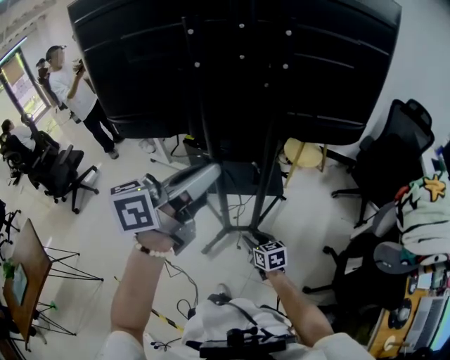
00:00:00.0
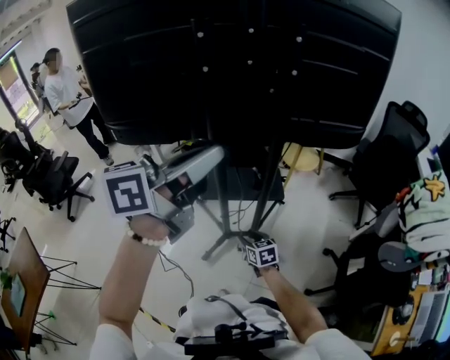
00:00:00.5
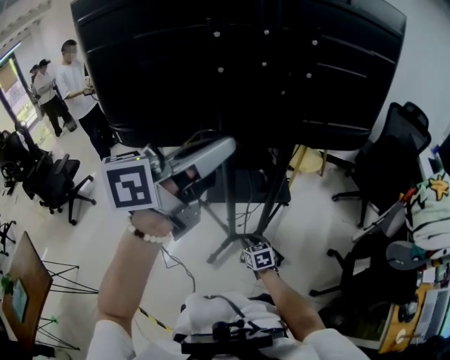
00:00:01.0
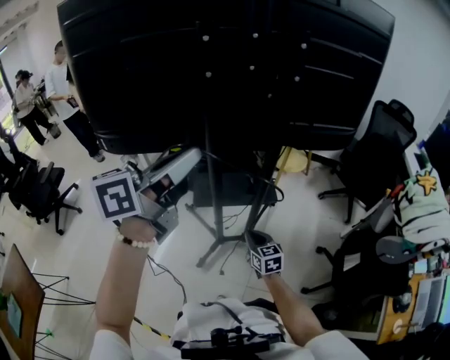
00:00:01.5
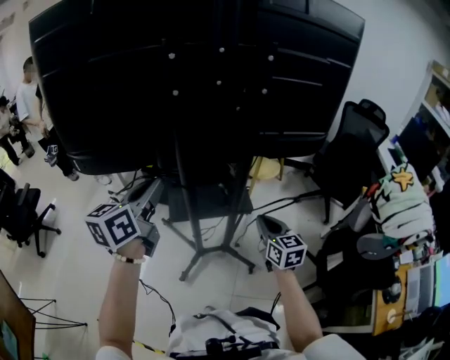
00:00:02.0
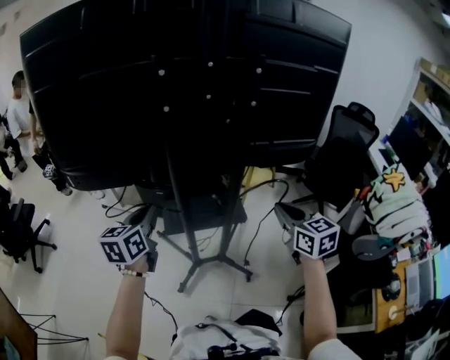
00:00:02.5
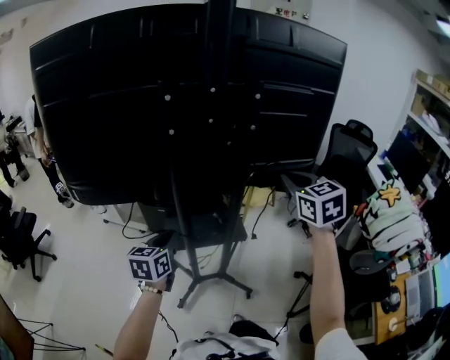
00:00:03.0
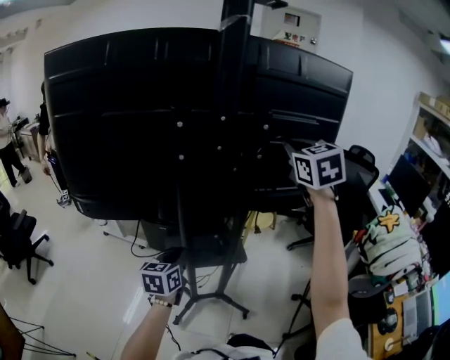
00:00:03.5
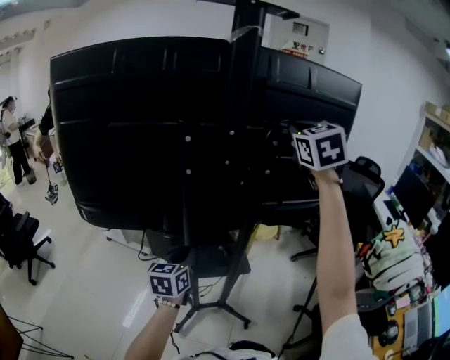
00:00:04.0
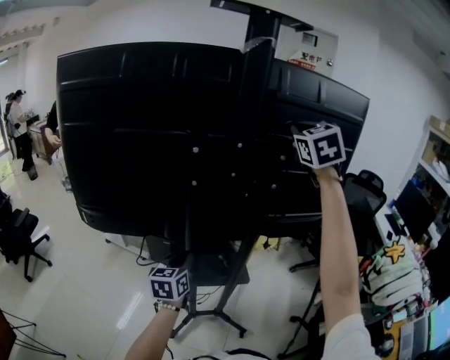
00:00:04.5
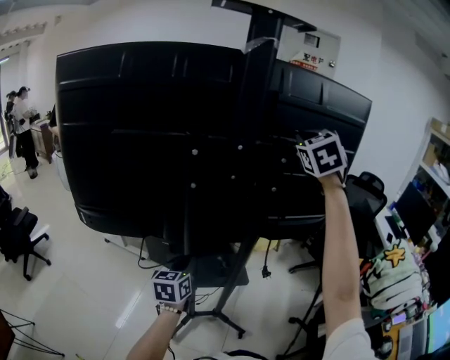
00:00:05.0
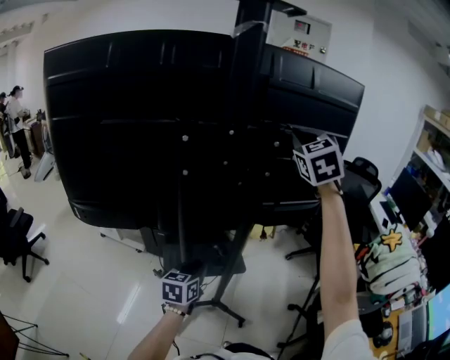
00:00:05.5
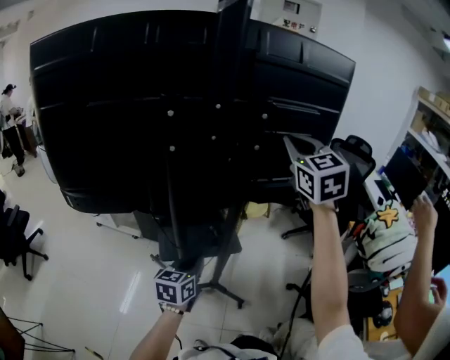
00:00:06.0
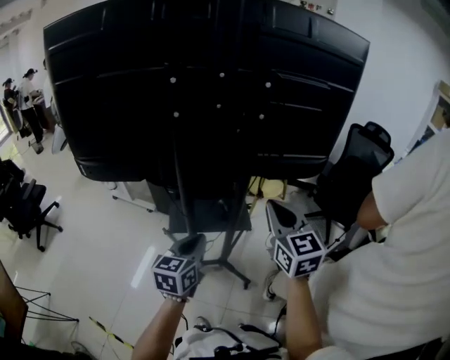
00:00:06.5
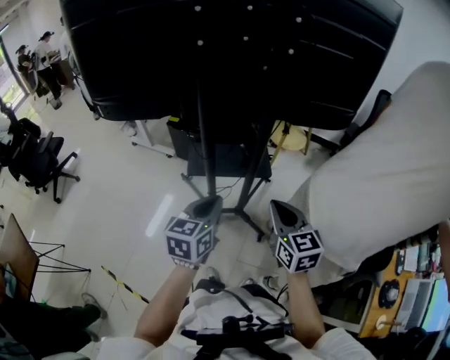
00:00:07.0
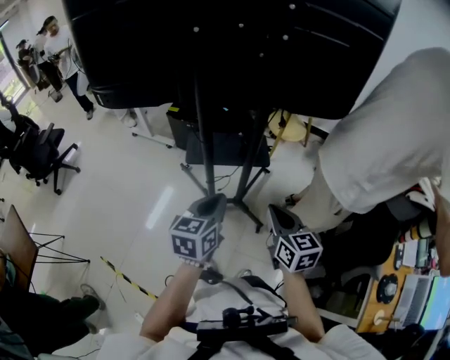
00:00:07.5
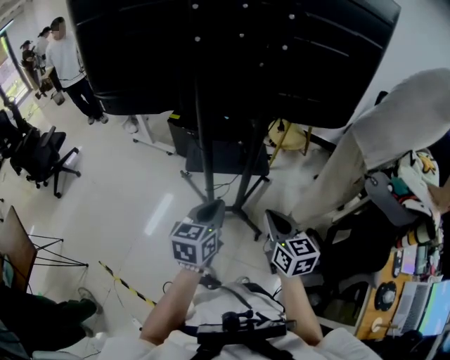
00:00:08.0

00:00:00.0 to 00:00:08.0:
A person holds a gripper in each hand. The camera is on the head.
00:00:00.0 to 00:00:02.0: The left gripper goes about 20 cm to the left, forward and downward, and rotates approximately 20 degrees. The right gripper moves upward and forward, some 20 cm, changes its angle by some 30 degrees, and closes its fingers.
00:00:02.0 to 00:00:04.0: The right gripper shifts some 50 cm upward, and swivels some 40 degrees. Meanwhile the left gripper moves downward, forward and to the right, some 10 cm.
00:00:04.0 to 00:00:06.0: The left gripper heads to the right and downward, covering roughly 10 cm; the right gripper is displaced downward by some 10 cm.
00:00:06.0 to 00:00:08.0: The left gripper goes about 15 cm backward, while the right gripper moves downward and backward, some 50 cm, and swivels roughly 40 degrees.

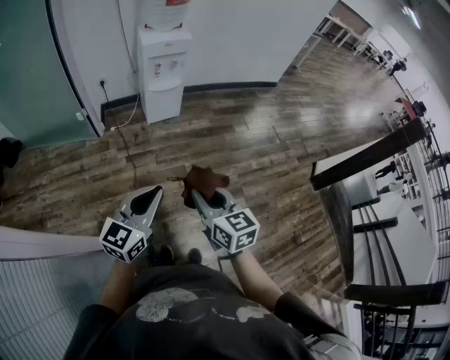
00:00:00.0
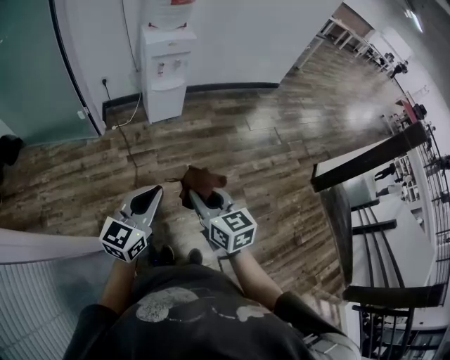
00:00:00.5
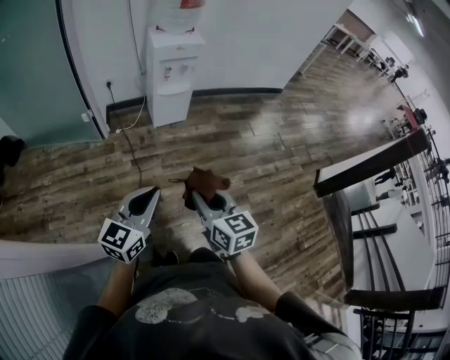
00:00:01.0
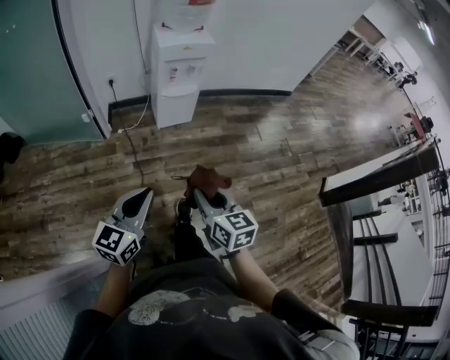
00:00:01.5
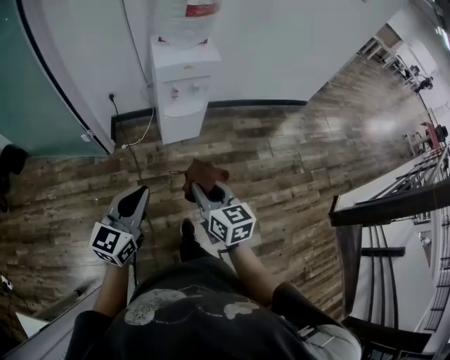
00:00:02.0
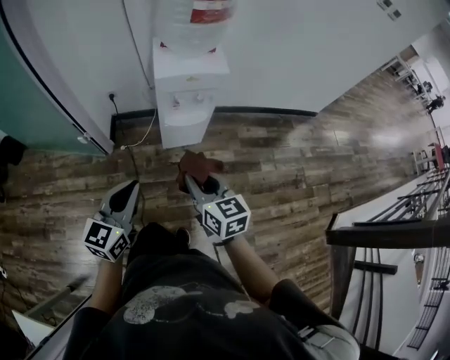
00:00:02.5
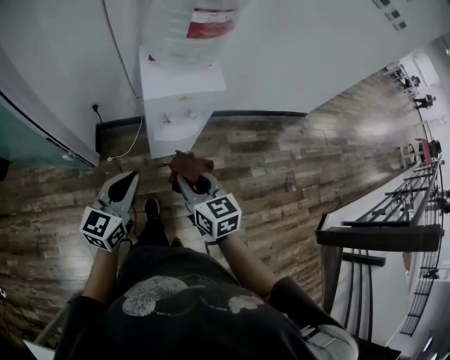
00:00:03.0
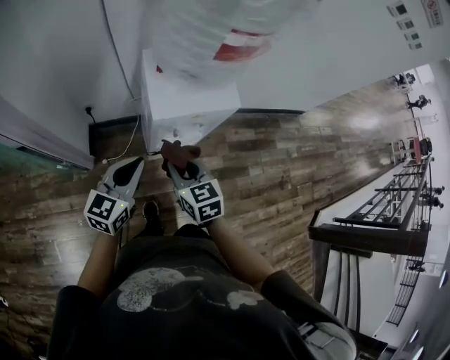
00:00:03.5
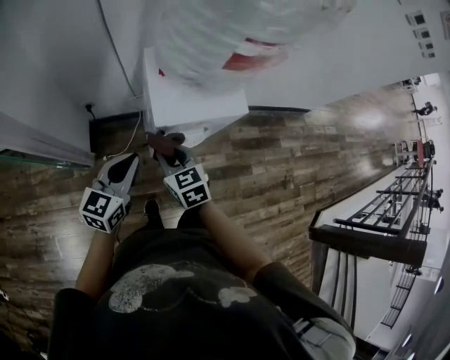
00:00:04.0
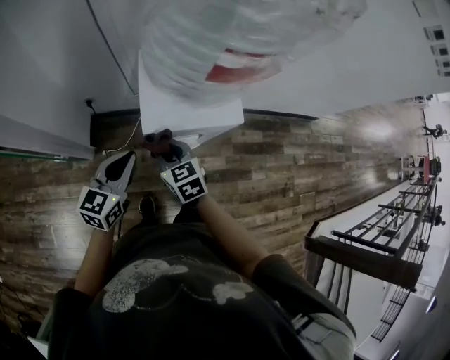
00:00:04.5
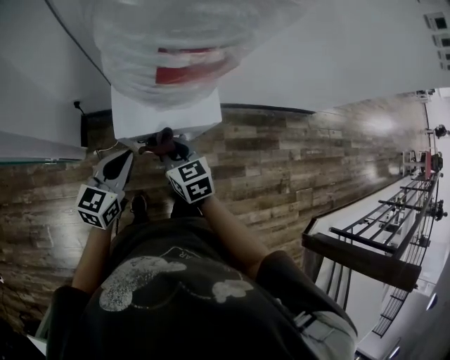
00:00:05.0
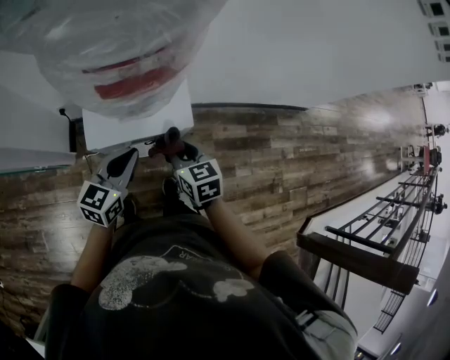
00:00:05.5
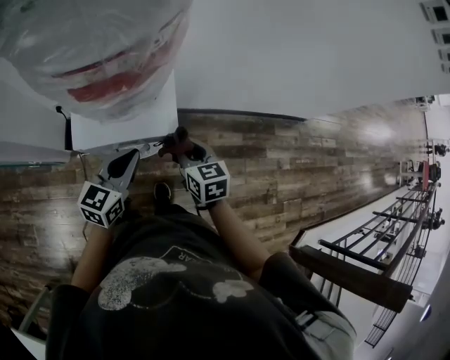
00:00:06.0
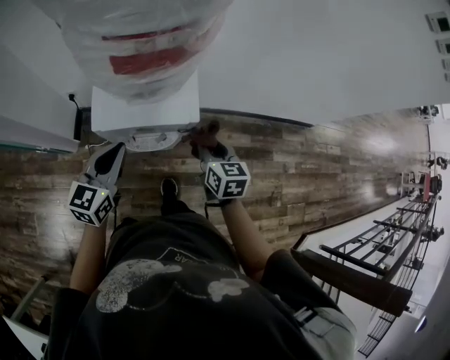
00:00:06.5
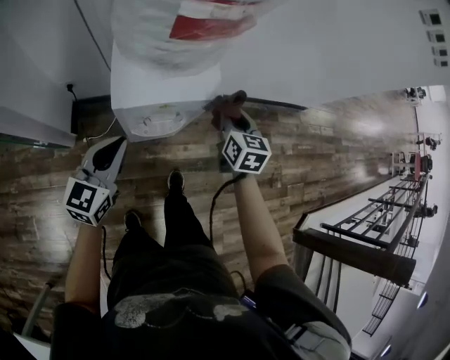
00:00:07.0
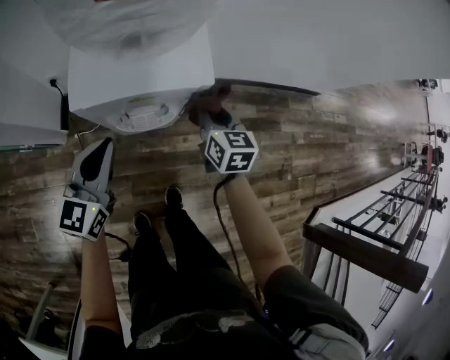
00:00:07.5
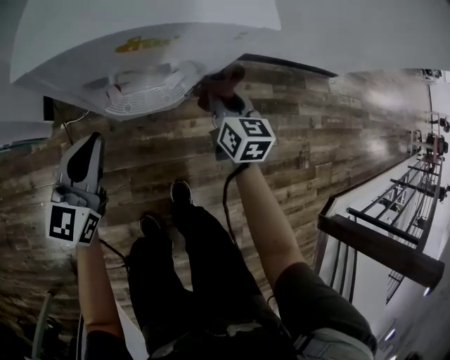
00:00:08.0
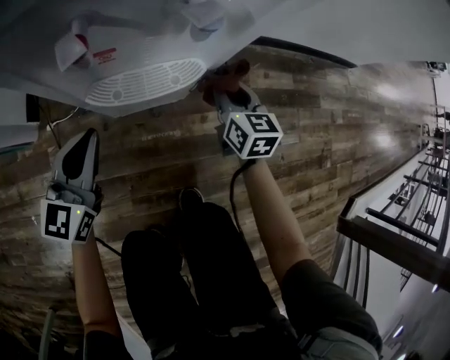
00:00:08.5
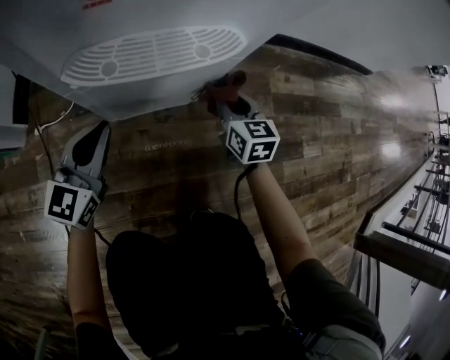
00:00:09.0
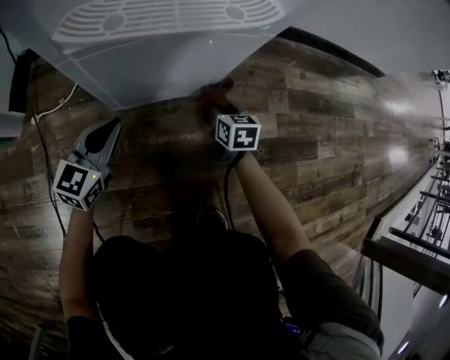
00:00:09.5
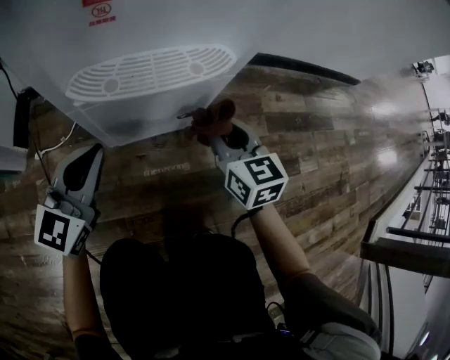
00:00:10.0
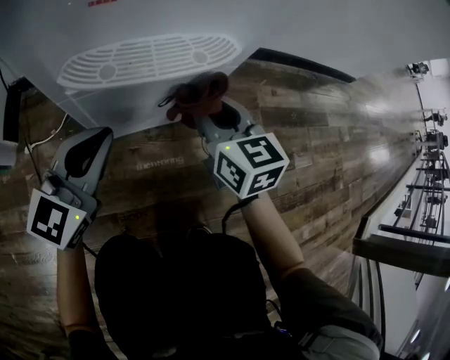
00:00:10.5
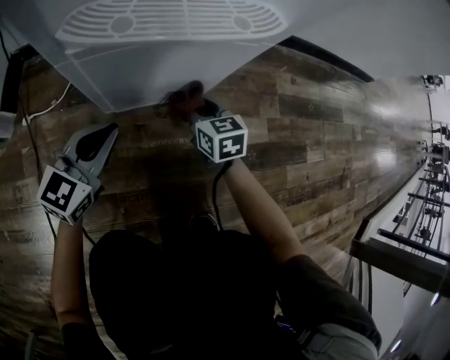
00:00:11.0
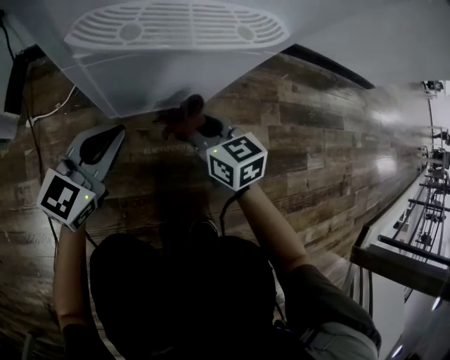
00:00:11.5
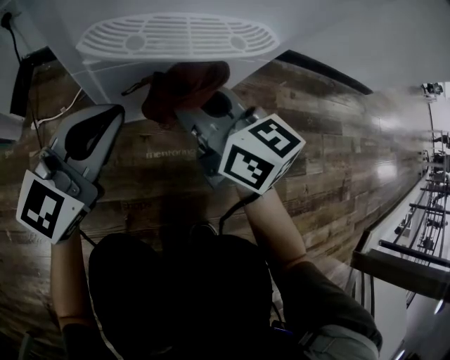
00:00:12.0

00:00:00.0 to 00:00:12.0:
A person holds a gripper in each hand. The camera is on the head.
00:00:00.0 to 00:00:02.0: Both grippers move forward, some 30 cm.
00:00:02.0 to 00:00:04.0: The pair of grippers is taken forward, approximately 40 cm. The right gripper changes its angle by some 20 degrees.
00:00:04.0 to 00:00:06.0: The two grippers go some 25 cm to the right.
00:00:06.0 to 00:00:08.0: The left gripper moves downward, to the left and backward, approximately 20 cm. The right gripper travels downward by roughly 20 cm.
00:00:08.0 to 00:00:10.0: Both grippers travel together downward, roughly 25 cm.
00:00:10.0 to 00:00:12.0: The right gripper goes approximately 10 cm to the left, travels downward and back again, approximately 15 cm each way, and swivels some 30 degrees, while the left gripper goes downward and returns, approximately 10 cm each way.

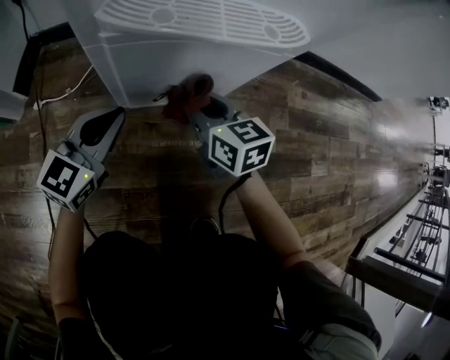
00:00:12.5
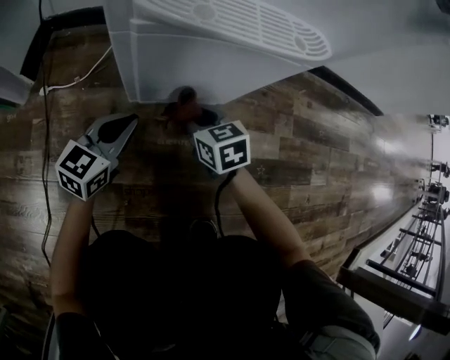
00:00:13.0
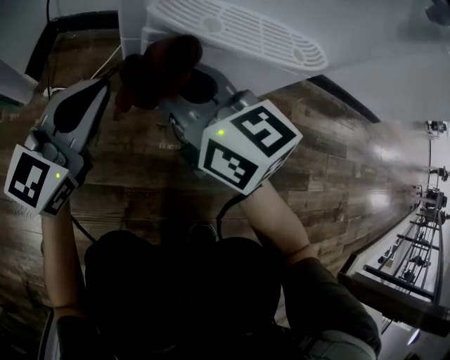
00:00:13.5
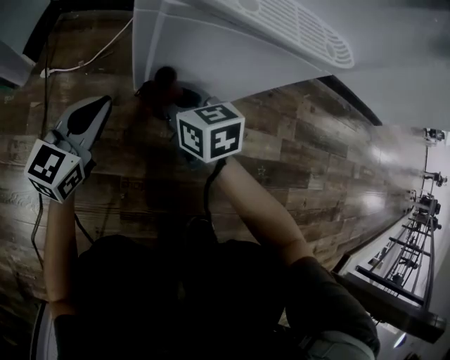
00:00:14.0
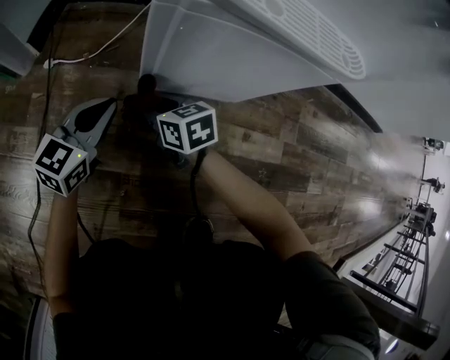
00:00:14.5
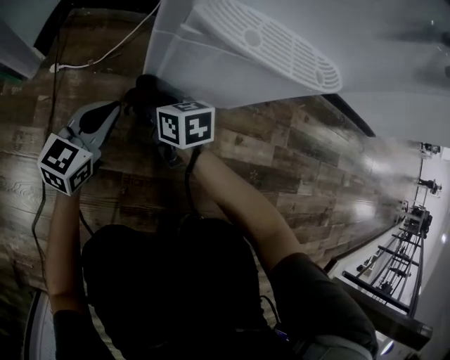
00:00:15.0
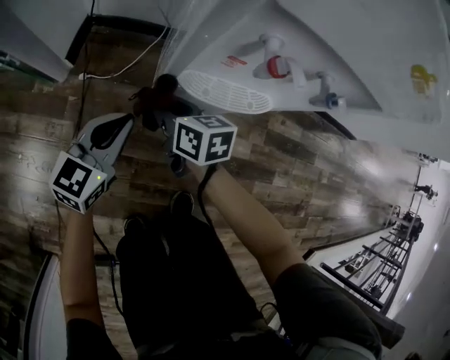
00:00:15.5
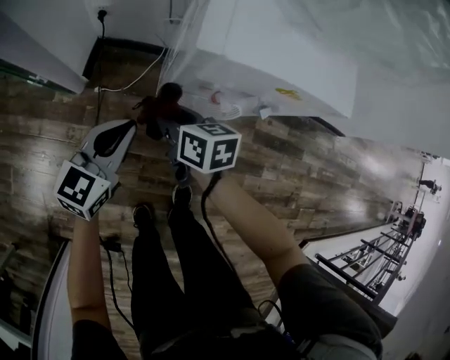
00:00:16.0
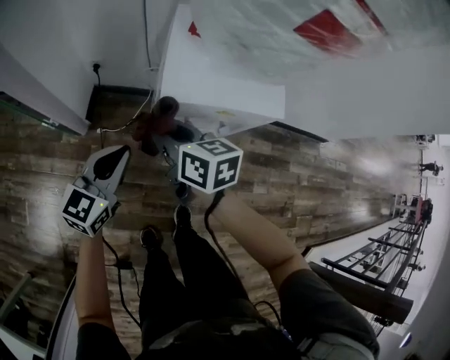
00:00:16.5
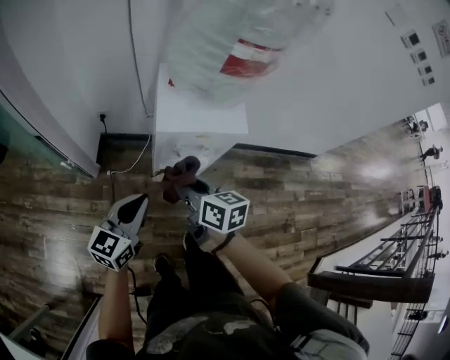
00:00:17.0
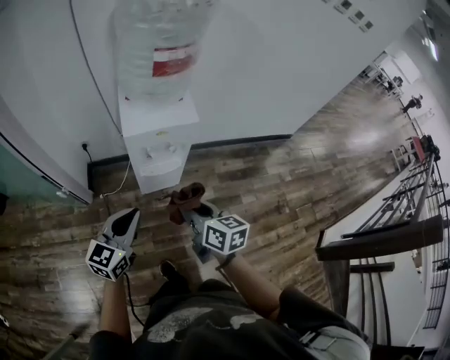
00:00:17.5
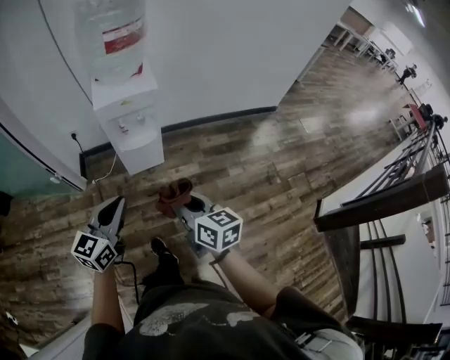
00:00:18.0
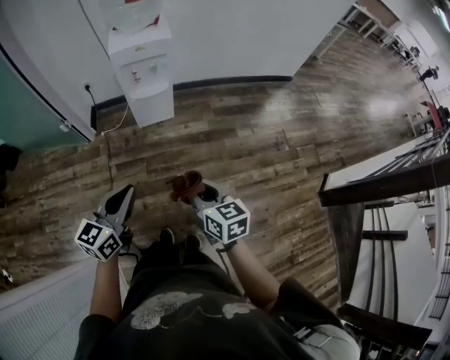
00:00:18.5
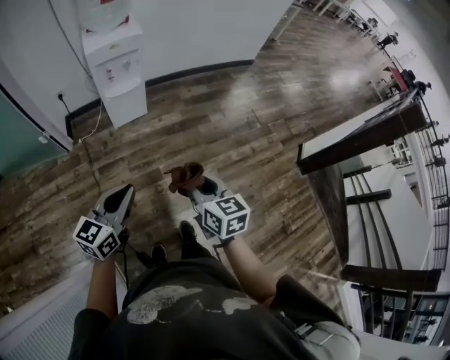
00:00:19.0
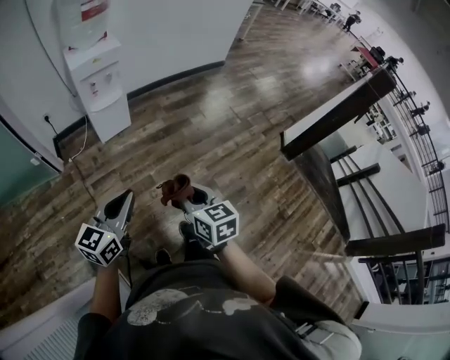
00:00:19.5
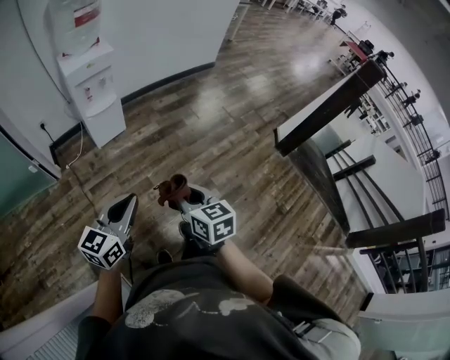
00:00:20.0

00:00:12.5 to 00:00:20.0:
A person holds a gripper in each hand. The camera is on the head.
00:00:12.5 to 00:00:14.5: The right gripper goes up and down, roughly 30 cm each way, reversing 2 times, and turns by about 20 degrees. The left gripper goes up and down, approximately 15 cm each way, reversing 2 times.
00:00:14.5 to 00:00:16.5: Both grippers move upward, roughly 60 cm. The right gripper swivels approximately 20 degrees.
00:00:16.5 to 00:00:18.0: The right gripper goes some 50 cm backward and to the right, and rotates about 20 degrees, while the left gripper moves backward, upward and to the right, about 40 cm.
00:00:18.0 to 00:00:20.0: The two grippers go approximately 30 cm backward. The right gripper turns by some 30 degrees; the left gripper swivels some 20 degrees.
